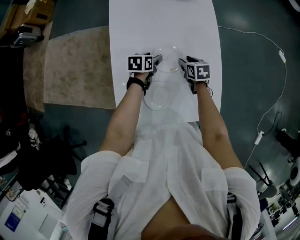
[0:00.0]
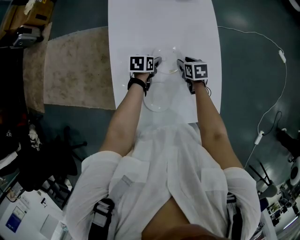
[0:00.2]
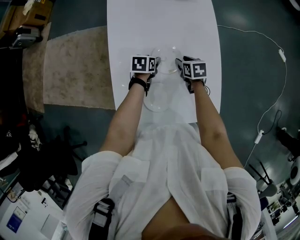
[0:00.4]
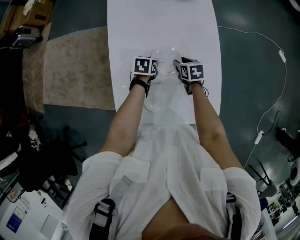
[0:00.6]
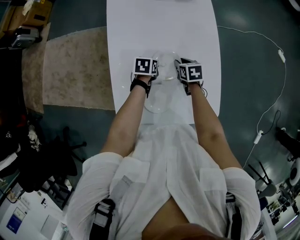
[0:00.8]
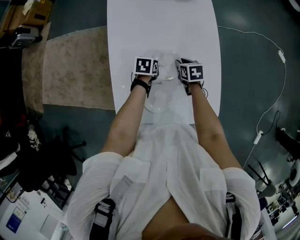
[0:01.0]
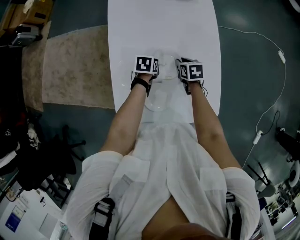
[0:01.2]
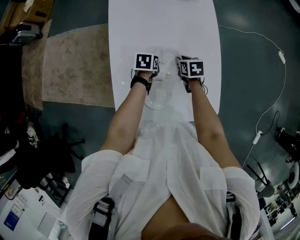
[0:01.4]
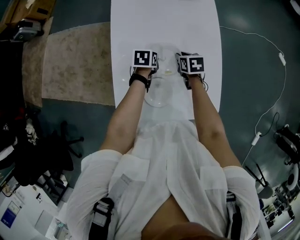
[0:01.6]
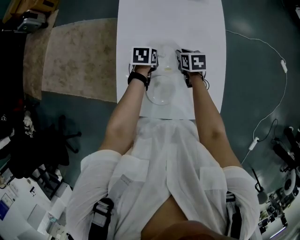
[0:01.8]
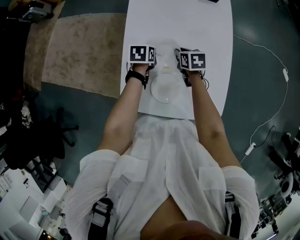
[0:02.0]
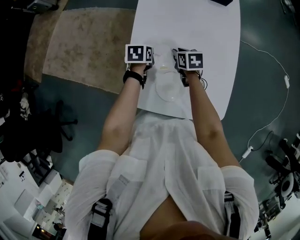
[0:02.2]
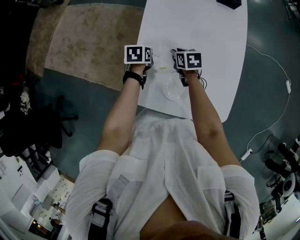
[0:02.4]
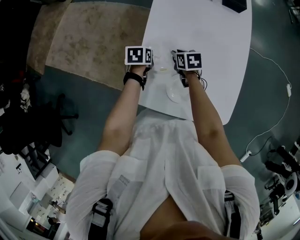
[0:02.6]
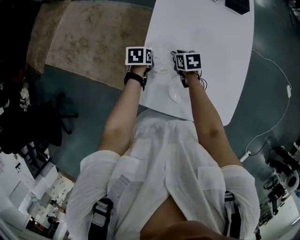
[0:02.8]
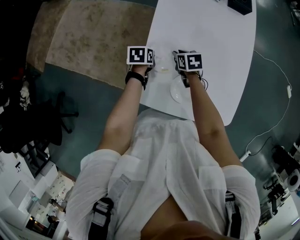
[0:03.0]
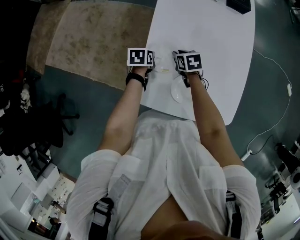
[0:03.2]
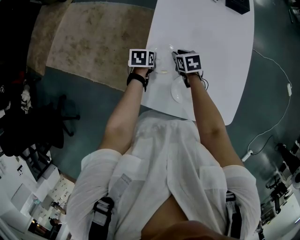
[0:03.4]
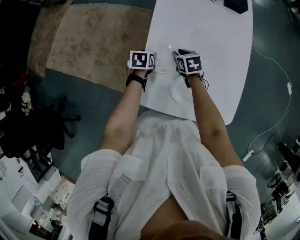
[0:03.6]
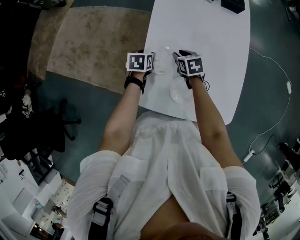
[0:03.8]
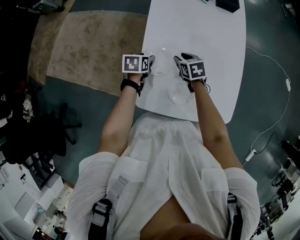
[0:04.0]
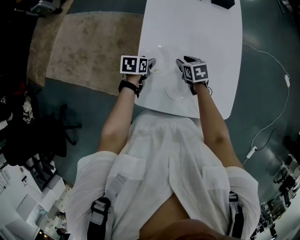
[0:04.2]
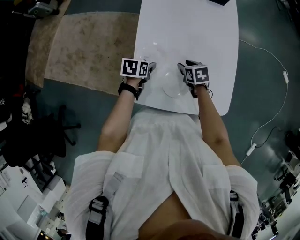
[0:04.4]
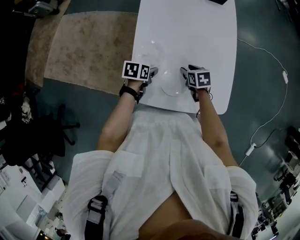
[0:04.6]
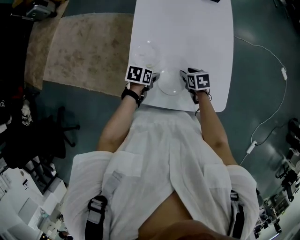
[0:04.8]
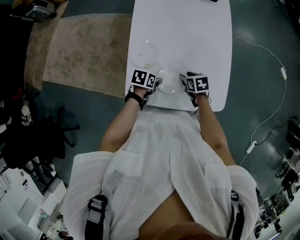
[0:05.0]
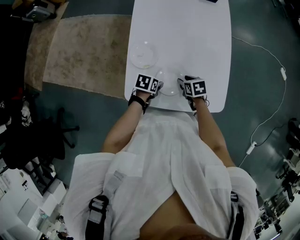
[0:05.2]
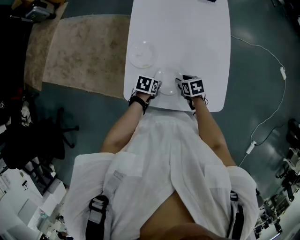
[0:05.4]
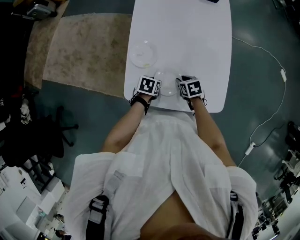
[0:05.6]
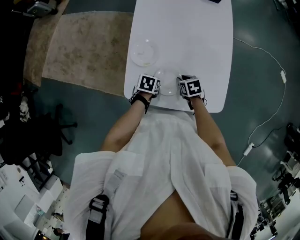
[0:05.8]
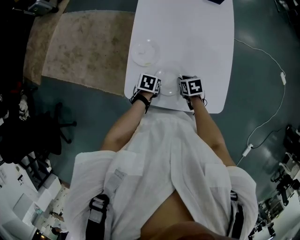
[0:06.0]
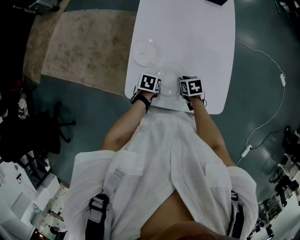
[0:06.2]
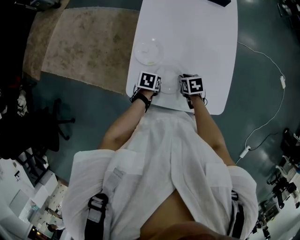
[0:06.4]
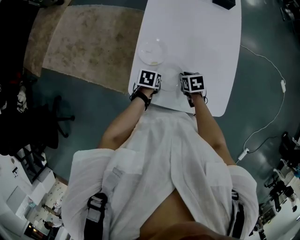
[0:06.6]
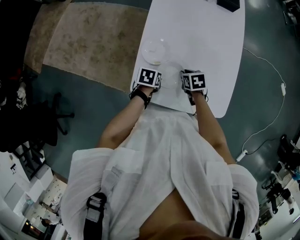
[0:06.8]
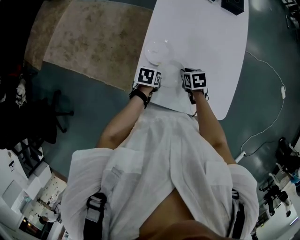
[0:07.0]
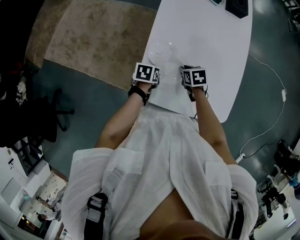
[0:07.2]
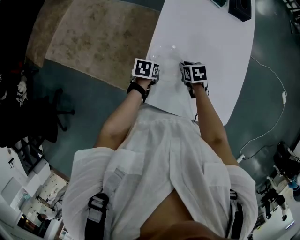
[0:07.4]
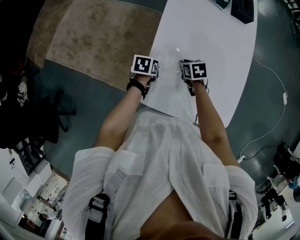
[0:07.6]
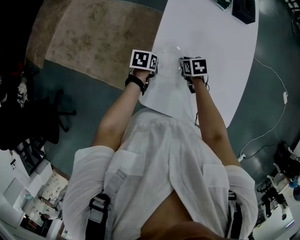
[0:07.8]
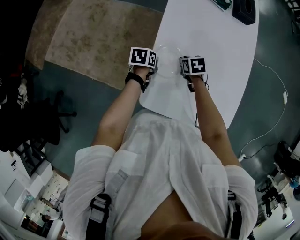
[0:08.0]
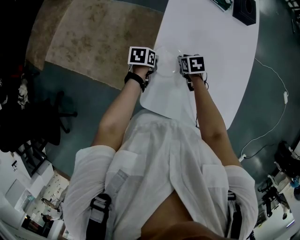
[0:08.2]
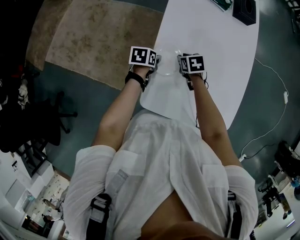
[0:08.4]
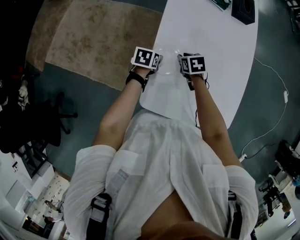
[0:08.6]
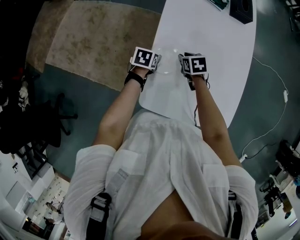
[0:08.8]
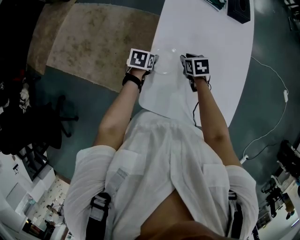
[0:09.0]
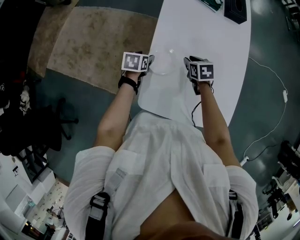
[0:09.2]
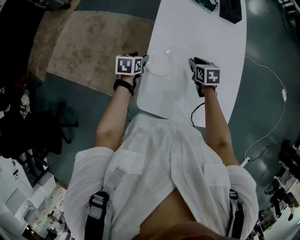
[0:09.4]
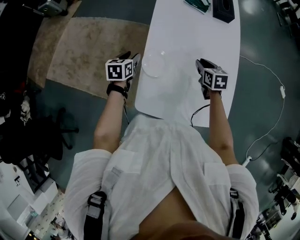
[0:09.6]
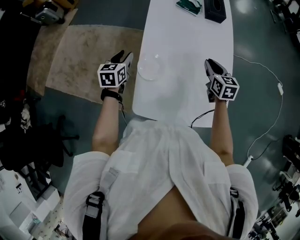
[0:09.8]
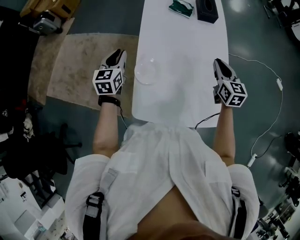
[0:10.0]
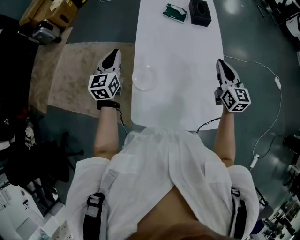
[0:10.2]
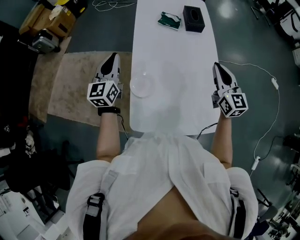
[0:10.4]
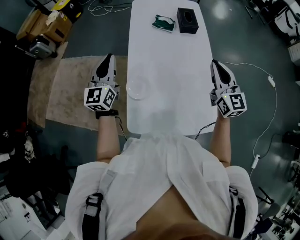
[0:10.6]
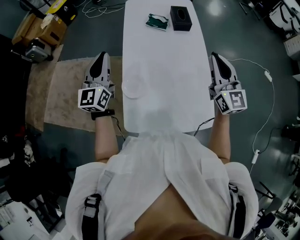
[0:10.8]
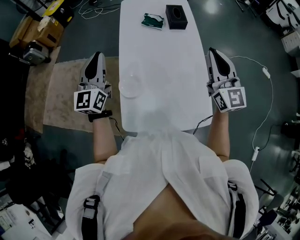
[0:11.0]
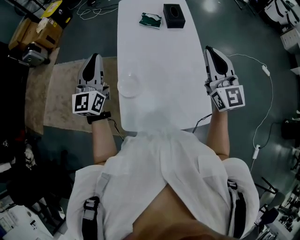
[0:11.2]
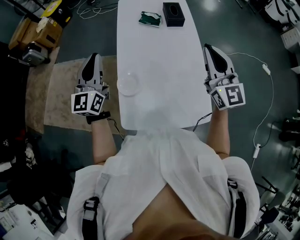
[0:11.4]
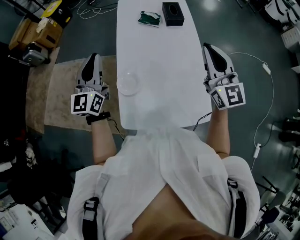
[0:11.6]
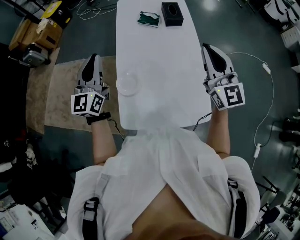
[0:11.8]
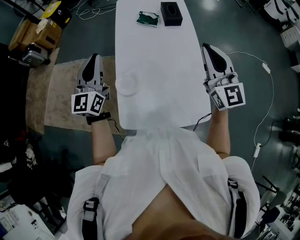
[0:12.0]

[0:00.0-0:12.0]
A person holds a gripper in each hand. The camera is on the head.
0:00.0 to 0:01.6: The left gripper closes its fingers. The right gripper closes up.
0:01.6 to 0:03.0: The two grippers go some 20 cm to the left.
0:03.0 to 0:04.4: The grippers both shift to the right and backward by roughly 10 cm. The left gripper opens up.
0:04.4 to 0:06.0: The left gripper moves about 15 cm, and closes up, while the right gripper moves some 10 cm, and closes.
0:06.0 to 0:07.6: The left gripper is displaced to the left and forward by roughly 15 cm. Meanwhile the right gripper is displaced forward and to the left by about 20 cm.
0:07.6 to 0:09.0: The left gripper shifts some 5 cm forward, and opens up. The right gripper ends up approximately 5 cm from where it was.
0:09.0 to 0:10.4: The left gripper is displaced upward by about 30 cm, tips its fingers upward by approximately 60 degrees, and closes its fingers. Meanwhile the right gripper moves upward and to the right, some 40 cm, points its fingers approximately 50 degrees further upward, and closes.
0:10.4 to 0:12.0: The right gripper heads upward, covering about 10 cm, and changes its angle by approximately 20 degrees; the left gripper is displaced upward and to the right by roughly 10 cm.

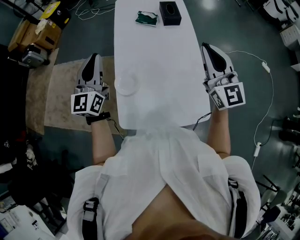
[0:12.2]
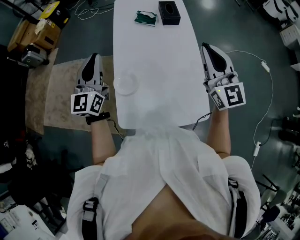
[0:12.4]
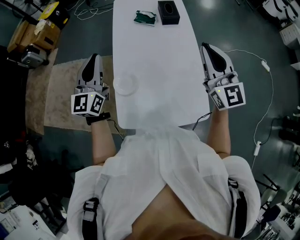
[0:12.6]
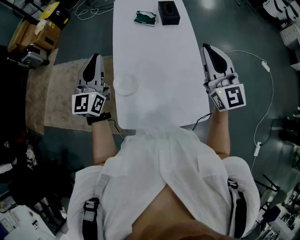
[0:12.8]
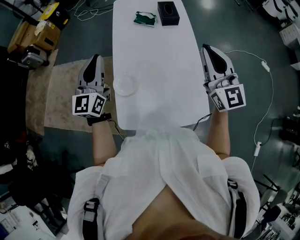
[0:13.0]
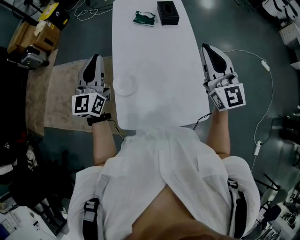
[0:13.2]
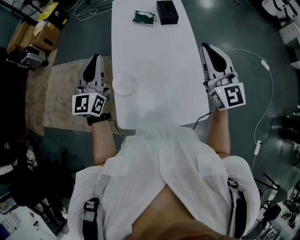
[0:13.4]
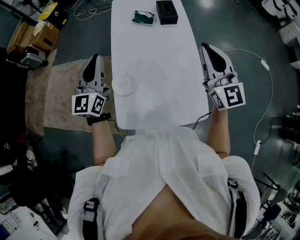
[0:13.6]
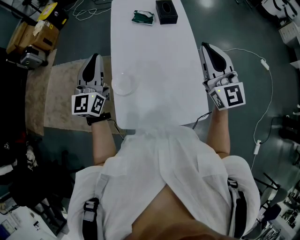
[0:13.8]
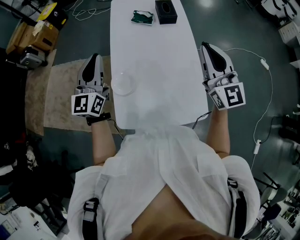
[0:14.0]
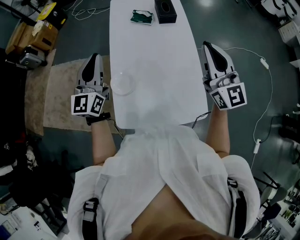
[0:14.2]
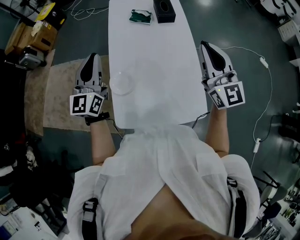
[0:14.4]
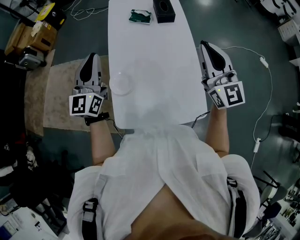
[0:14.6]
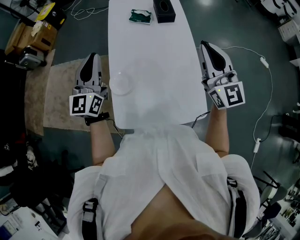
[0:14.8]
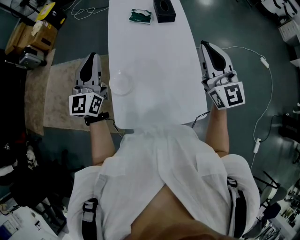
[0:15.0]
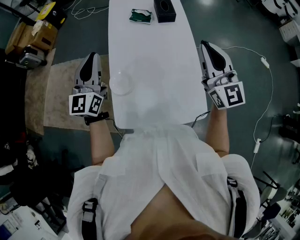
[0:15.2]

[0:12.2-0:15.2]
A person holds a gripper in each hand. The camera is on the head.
0:12.2 to 0:15.2: The grippers move only a little.

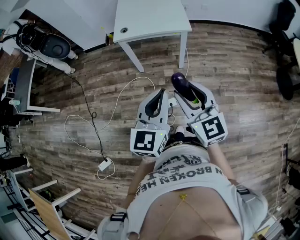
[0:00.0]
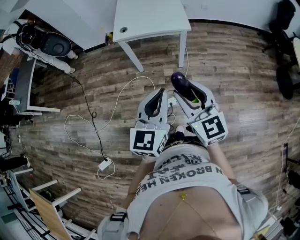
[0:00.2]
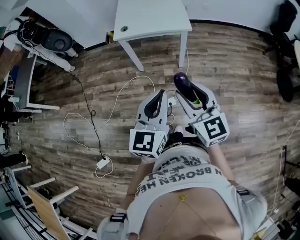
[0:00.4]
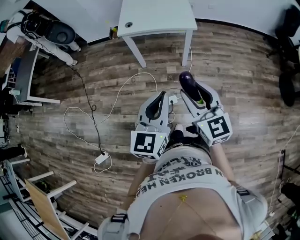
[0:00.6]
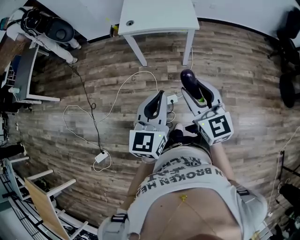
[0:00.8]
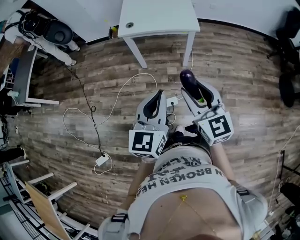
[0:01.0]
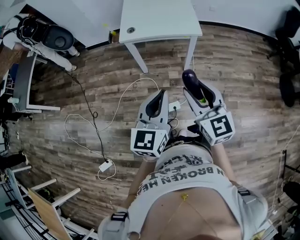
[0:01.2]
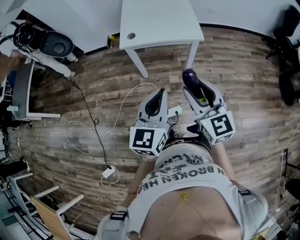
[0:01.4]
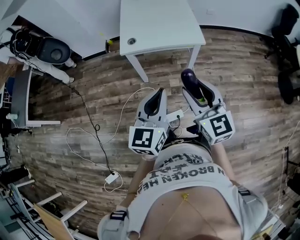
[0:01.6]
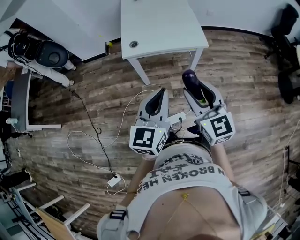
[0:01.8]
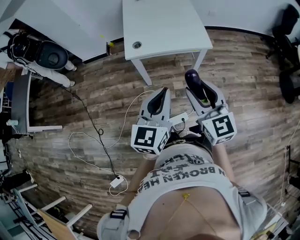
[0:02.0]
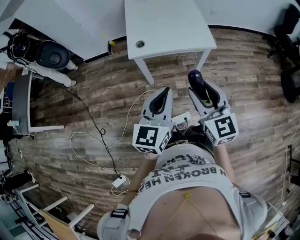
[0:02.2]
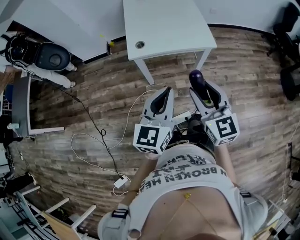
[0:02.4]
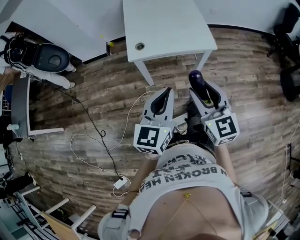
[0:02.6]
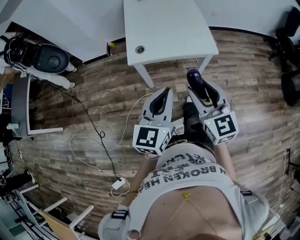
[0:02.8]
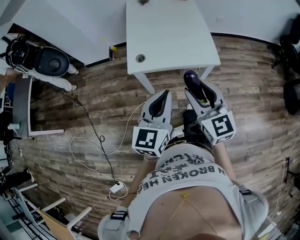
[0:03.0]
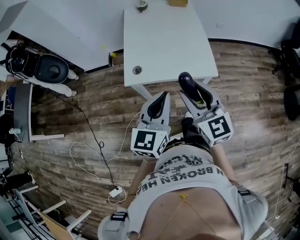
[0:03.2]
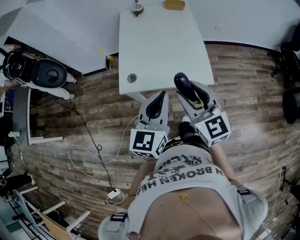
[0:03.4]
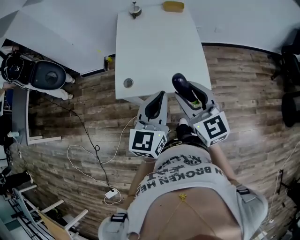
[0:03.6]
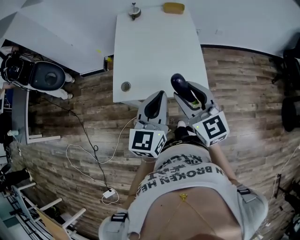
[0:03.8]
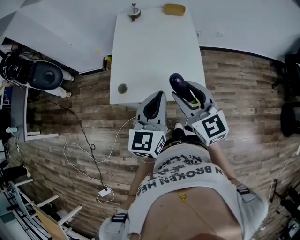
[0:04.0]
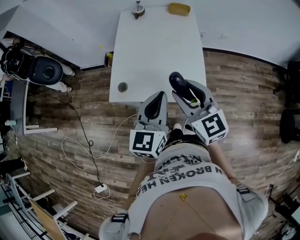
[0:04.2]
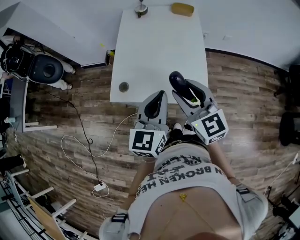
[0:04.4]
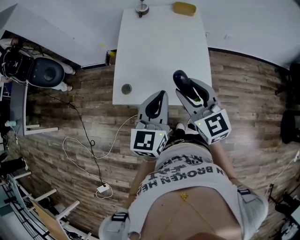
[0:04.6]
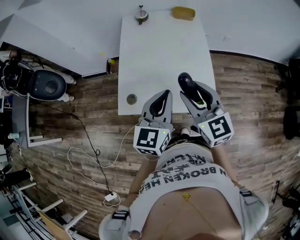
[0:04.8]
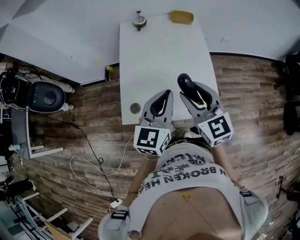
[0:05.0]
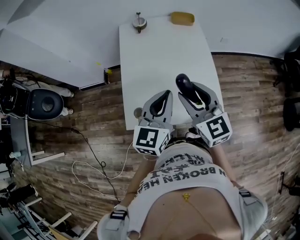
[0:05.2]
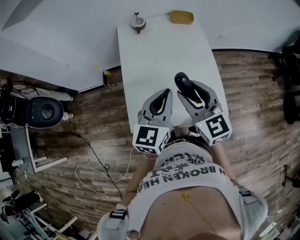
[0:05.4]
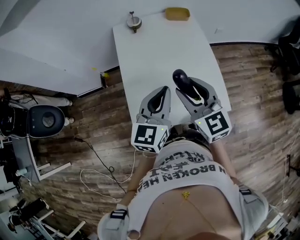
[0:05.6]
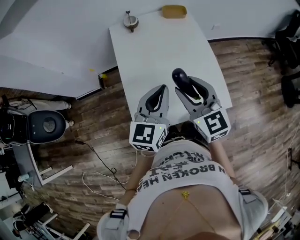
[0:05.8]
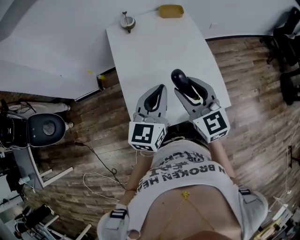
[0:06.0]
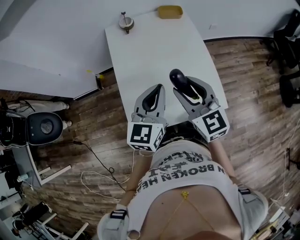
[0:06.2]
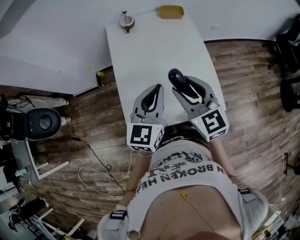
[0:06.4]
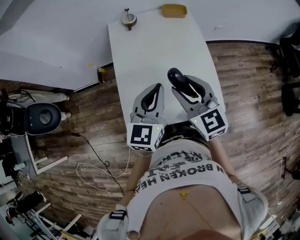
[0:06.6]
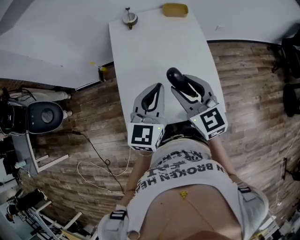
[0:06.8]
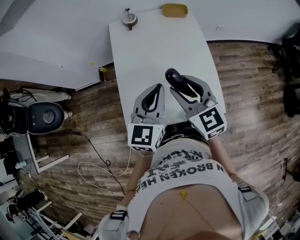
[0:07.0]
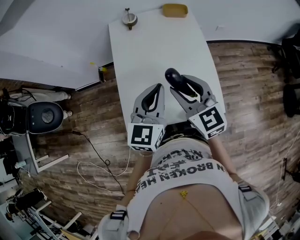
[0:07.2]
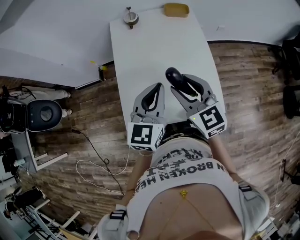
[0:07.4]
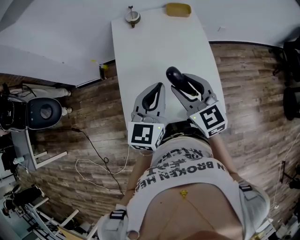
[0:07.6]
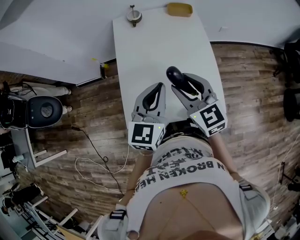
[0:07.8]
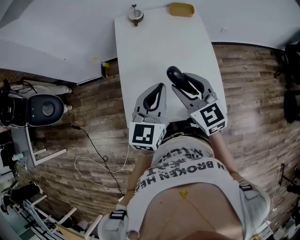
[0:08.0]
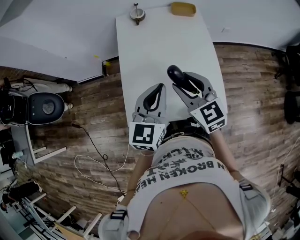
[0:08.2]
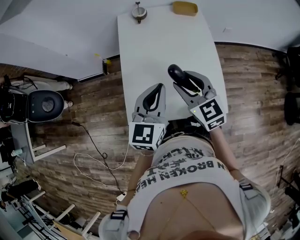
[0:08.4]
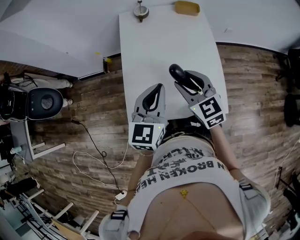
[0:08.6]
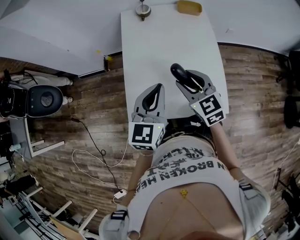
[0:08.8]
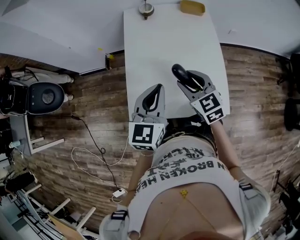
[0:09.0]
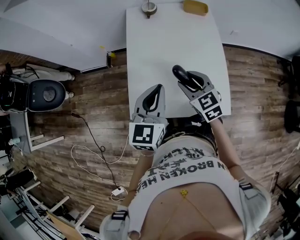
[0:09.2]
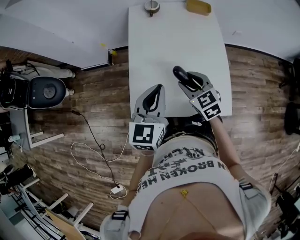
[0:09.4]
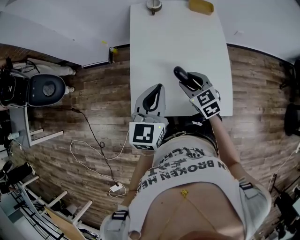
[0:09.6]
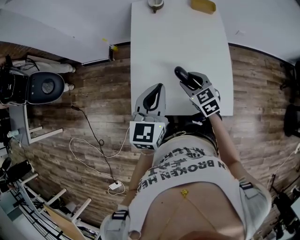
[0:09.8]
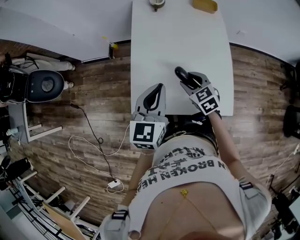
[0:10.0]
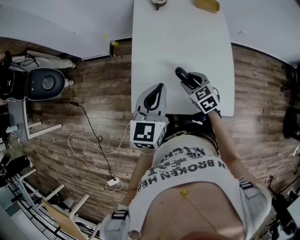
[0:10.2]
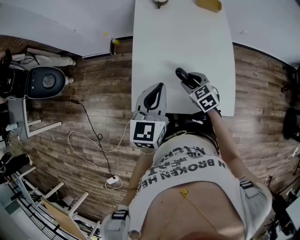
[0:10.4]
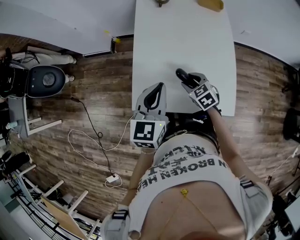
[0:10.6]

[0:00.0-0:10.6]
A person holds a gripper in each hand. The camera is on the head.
0:00.0 to 0:01.6: The right gripper goes roughly 20 cm forward; the left gripper heads forward and to the left, covering about 20 cm.
0:01.6 to 0:03.0: Both grippers move forward, about 20 cm.
0:03.0 to 0:04.6: Both grippers travel together forward and to the right, roughly 30 cm.
0:04.6 to 0:06.0: Both grippers travel together forward and to the left, about 20 cm. The left gripper rotates some 20 degrees.
0:06.0 to 0:07.6: There are only small adjustments of the grippers.
0:07.6 to 0:09.0: The right gripper goes some 5 cm downward.
0:09.0 to 0:10.6: The left gripper moves roughly 5 cm. The right gripper moves downward, about 15 cm, and swivels approximately 20 degrees.
